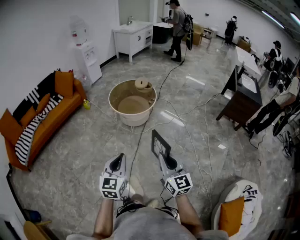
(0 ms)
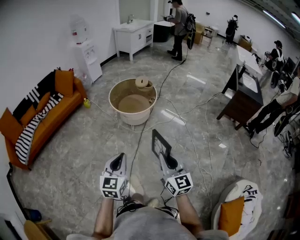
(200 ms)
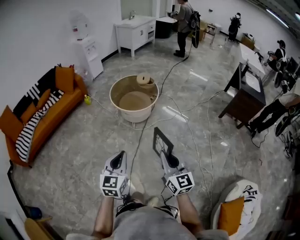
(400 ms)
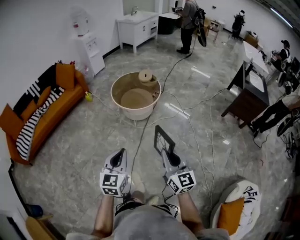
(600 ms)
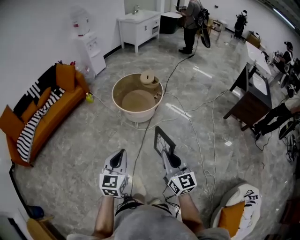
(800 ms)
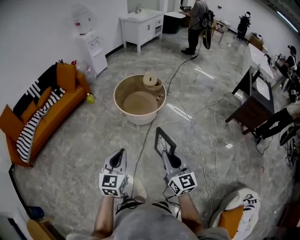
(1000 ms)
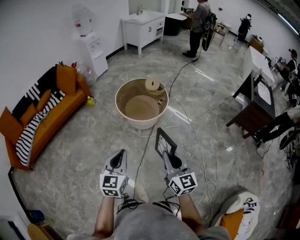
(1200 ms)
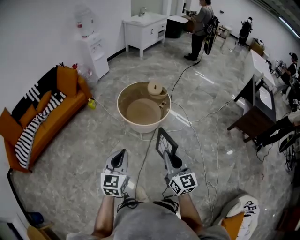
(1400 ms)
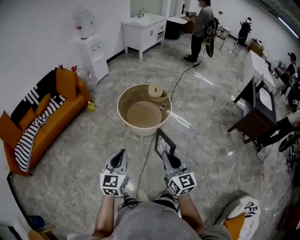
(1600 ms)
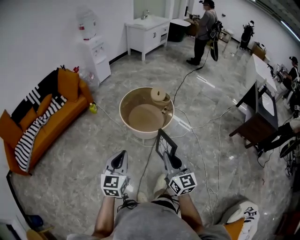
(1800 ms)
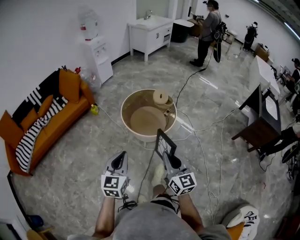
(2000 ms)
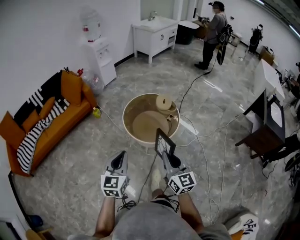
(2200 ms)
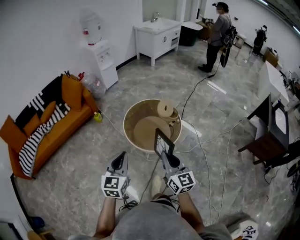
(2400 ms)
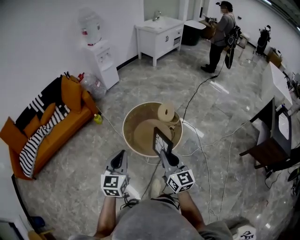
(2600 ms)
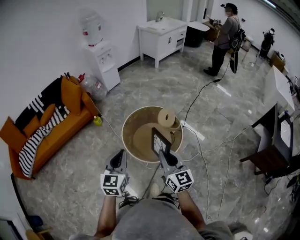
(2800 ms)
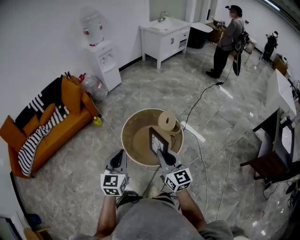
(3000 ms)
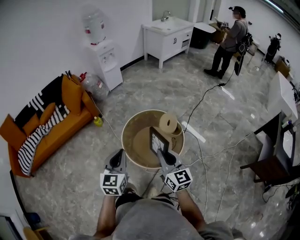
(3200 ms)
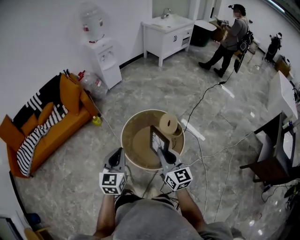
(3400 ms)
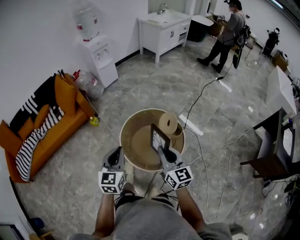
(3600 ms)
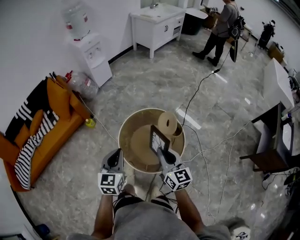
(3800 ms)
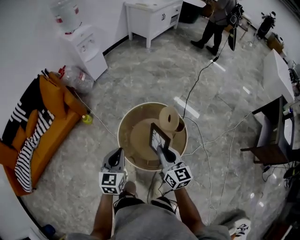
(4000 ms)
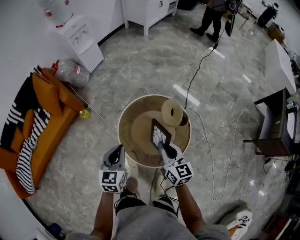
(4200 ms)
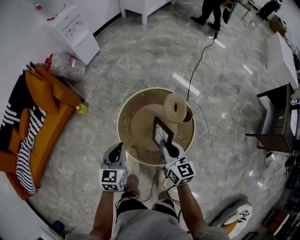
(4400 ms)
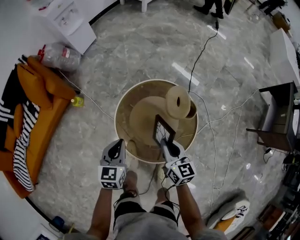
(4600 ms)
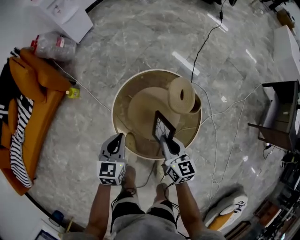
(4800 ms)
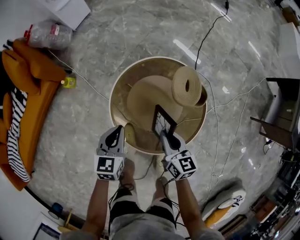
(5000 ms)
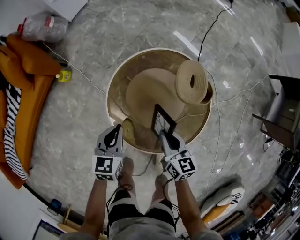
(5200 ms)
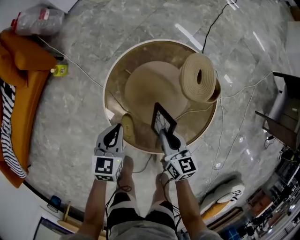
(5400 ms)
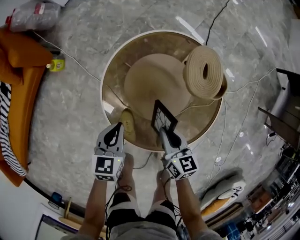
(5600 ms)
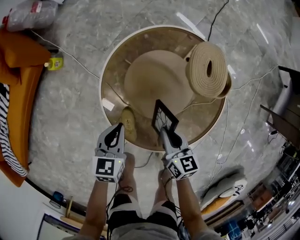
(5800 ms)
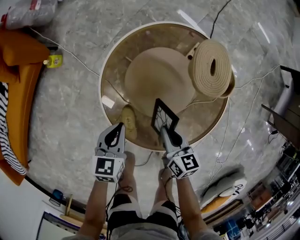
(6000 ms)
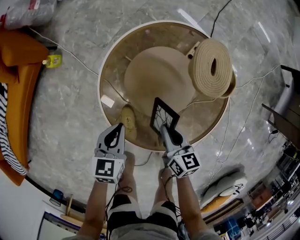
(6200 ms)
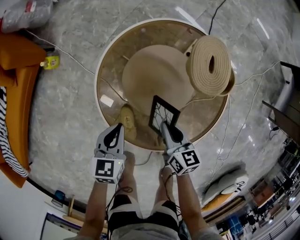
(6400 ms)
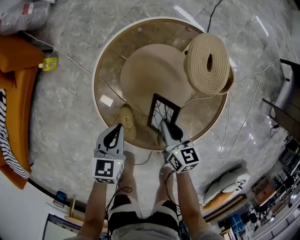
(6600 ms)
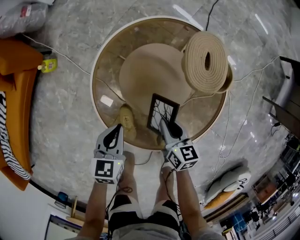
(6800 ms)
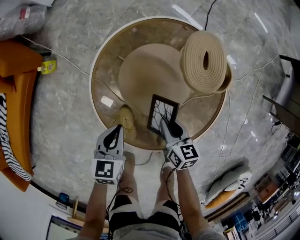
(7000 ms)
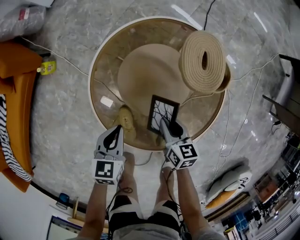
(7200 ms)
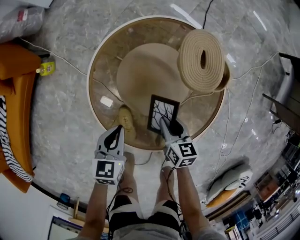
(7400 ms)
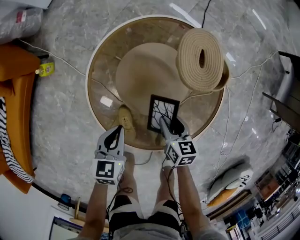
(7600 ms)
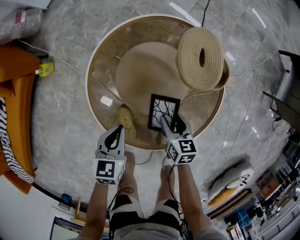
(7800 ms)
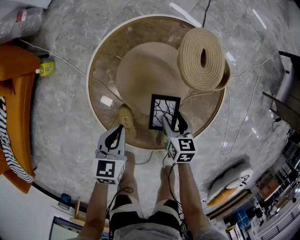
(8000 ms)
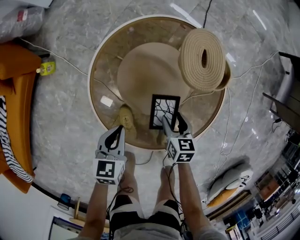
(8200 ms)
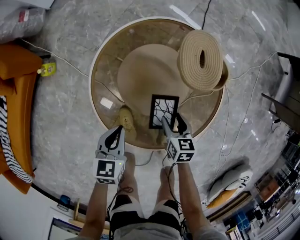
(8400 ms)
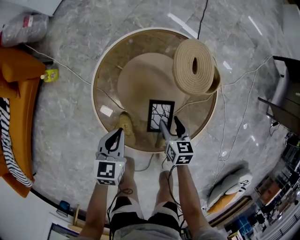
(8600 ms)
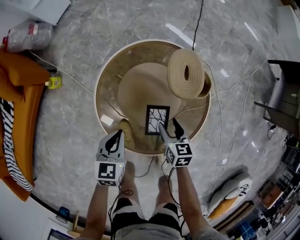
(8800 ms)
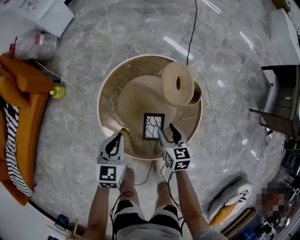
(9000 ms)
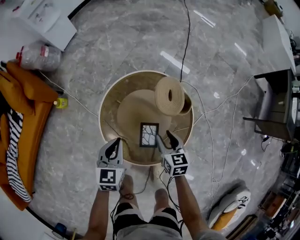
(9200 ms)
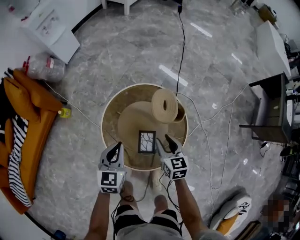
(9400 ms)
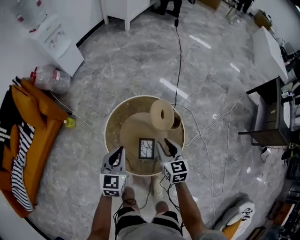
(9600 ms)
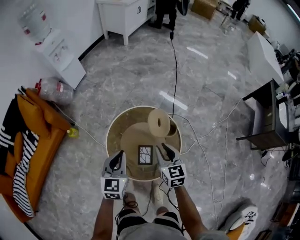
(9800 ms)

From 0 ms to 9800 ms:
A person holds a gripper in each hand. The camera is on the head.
From 0 ms to 1400 ms: Both grippers move forward, roughly 30 cm.
From 1400 ms to 2800 ms: The two grippers go approximately 40 cm forward.
From 2800 ms to 4200 ms: The two grippers go about 35 cm forward and downward.
From 4200 ms to 5600 ms: The grippers both shift downward by roughly 40 cm. The right gripper rotates some 20 degrees. The left gripper rotates roughly 20 degrees.
From 5600 ms to 7000 ms: The right gripper heads downward, covering some 10 cm. The left gripper ends up some 5 cm from where it was.
From 7000 ms to 8400 ms: The right gripper ends up approximately 5 cm from where it was, and opens up.
From 8400 ms to 9800 ms: Both grippers travel together upward, approximately 40 cm. The right gripper turns by approximately 30 degrees, and closes its fingers; the left gripper rotates about 30 degrees.

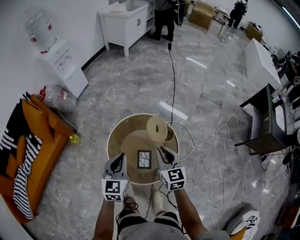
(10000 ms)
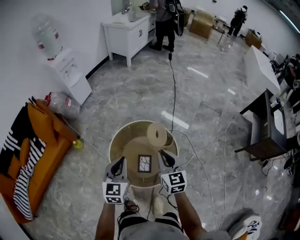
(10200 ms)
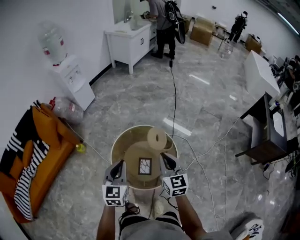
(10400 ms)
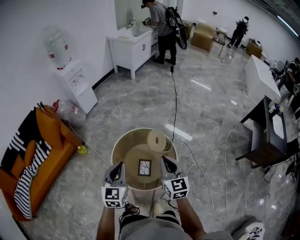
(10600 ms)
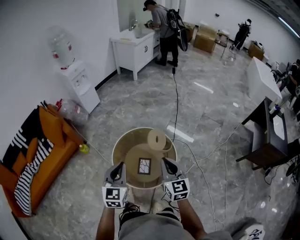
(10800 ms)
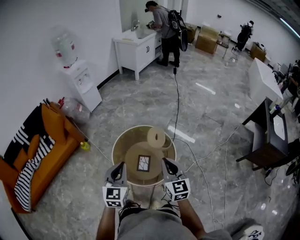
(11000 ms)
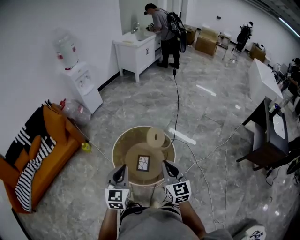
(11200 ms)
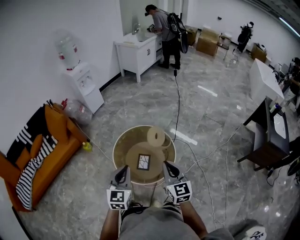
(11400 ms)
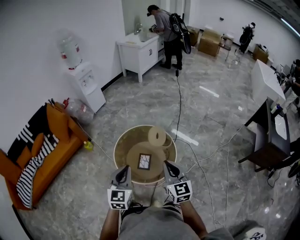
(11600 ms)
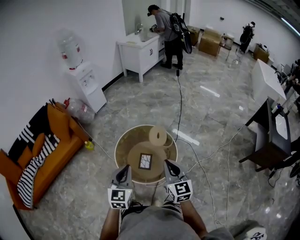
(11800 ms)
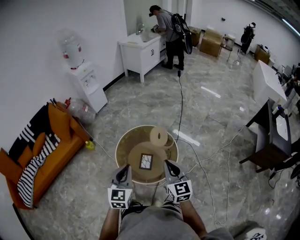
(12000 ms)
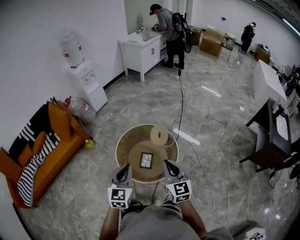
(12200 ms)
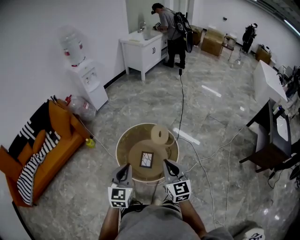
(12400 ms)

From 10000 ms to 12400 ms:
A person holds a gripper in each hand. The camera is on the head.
From 10000 ms to 11200 ms: The two grippers go roughly 25 cm backward and upward.
From 11200 ms to 12400 ms: The grippers stay close to where they were, moving slightly.

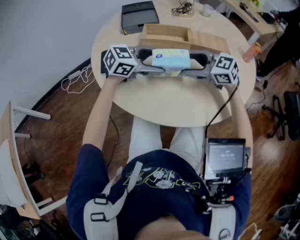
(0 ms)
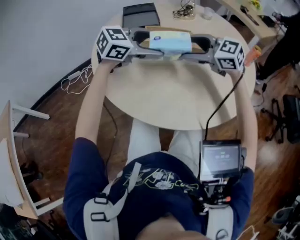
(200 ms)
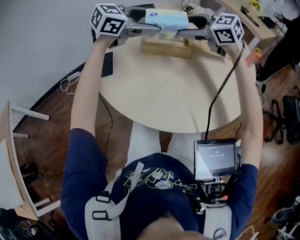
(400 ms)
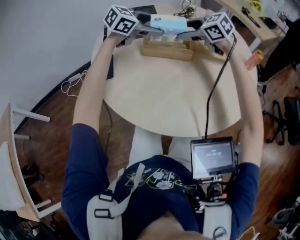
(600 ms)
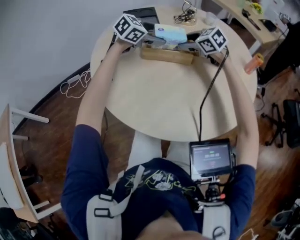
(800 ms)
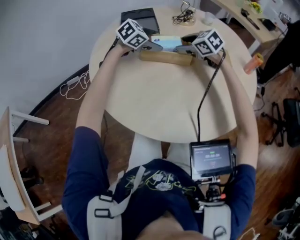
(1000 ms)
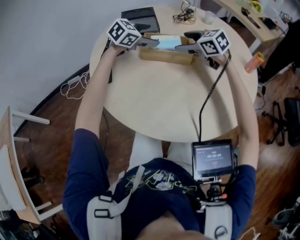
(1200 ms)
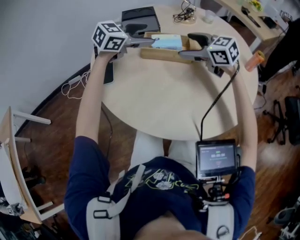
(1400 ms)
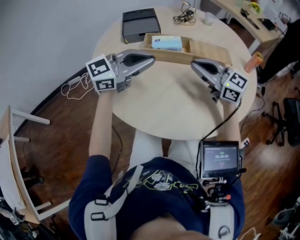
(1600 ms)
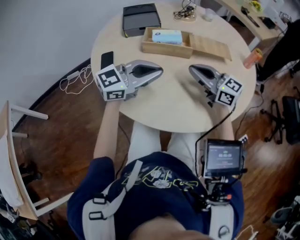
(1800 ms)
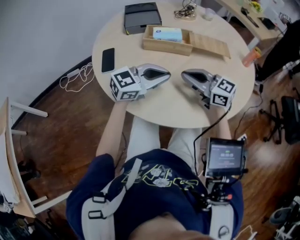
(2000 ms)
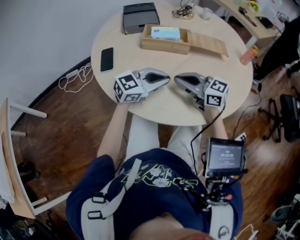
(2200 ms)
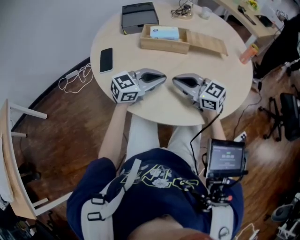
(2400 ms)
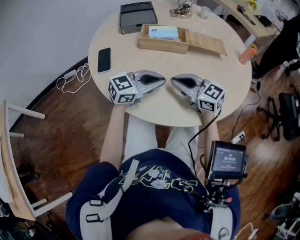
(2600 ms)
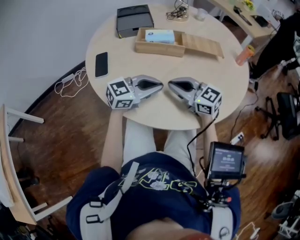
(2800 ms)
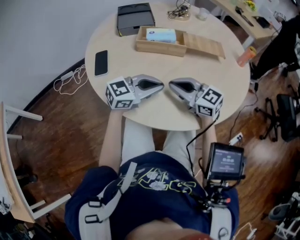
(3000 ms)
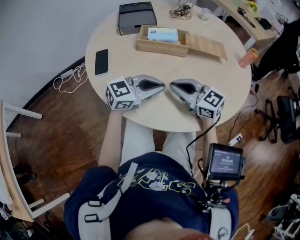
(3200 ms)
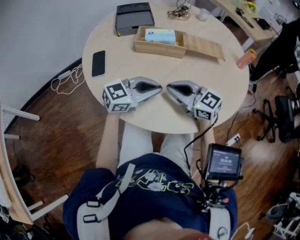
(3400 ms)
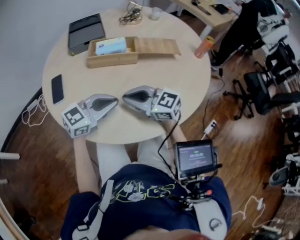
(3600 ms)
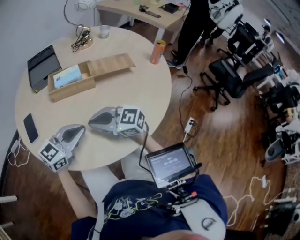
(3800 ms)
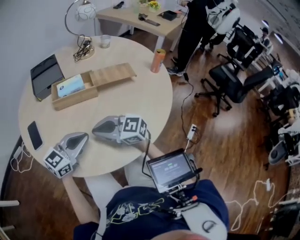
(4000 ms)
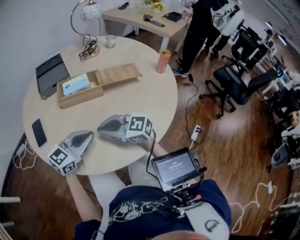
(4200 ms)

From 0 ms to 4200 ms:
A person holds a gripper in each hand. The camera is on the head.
From 0 ms to 1400 ms: The left gripper goes up and down, about 15 cm each way, reversing 2 times, while the right gripper moves up and down over roughly 15 cm, changing direction 2 times.
From 1400 ms to 2800 ms: The right gripper shifts by approximately 20 cm, and closes. The left gripper changes place by roughly 25 cm, swivels about 20 degrees, and closes up.
From 2800 ms to 4200 ms: The grippers stay close to where they were, moving slightly.

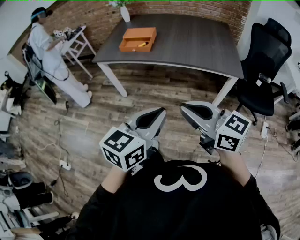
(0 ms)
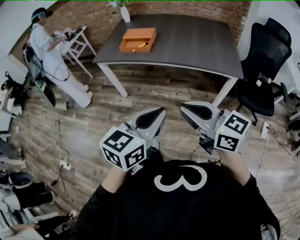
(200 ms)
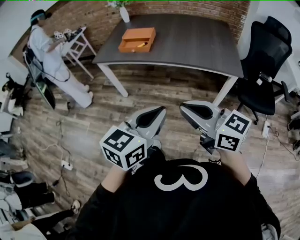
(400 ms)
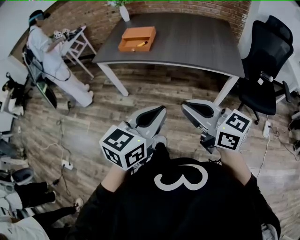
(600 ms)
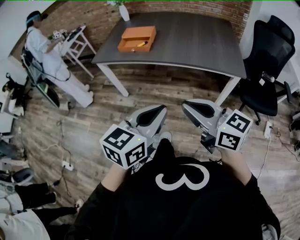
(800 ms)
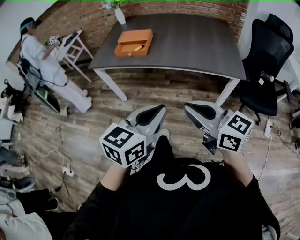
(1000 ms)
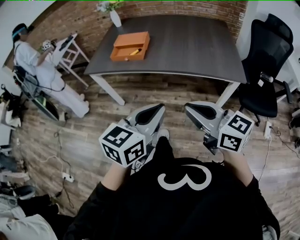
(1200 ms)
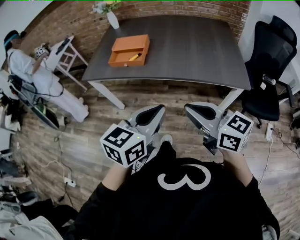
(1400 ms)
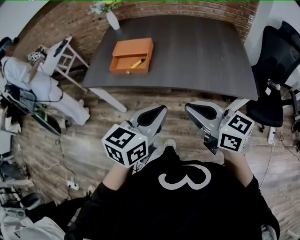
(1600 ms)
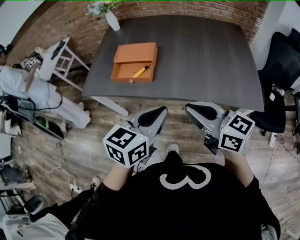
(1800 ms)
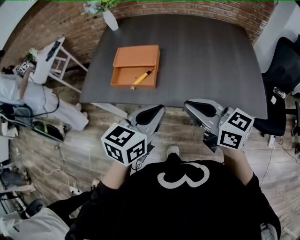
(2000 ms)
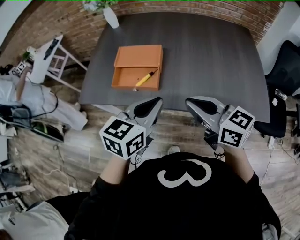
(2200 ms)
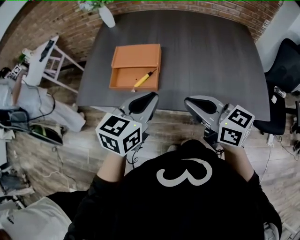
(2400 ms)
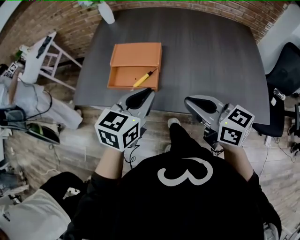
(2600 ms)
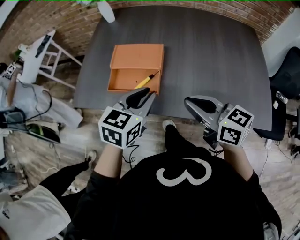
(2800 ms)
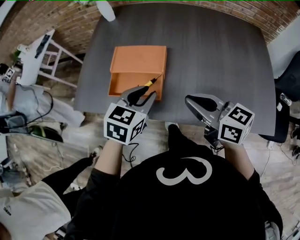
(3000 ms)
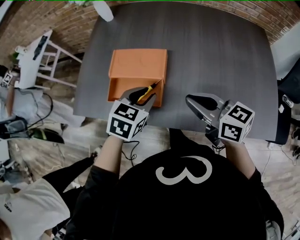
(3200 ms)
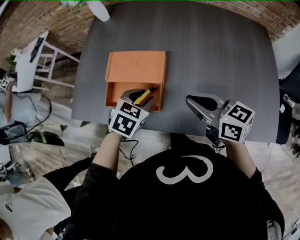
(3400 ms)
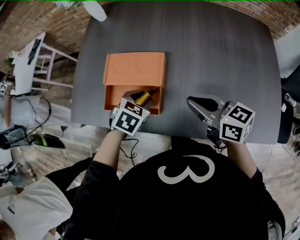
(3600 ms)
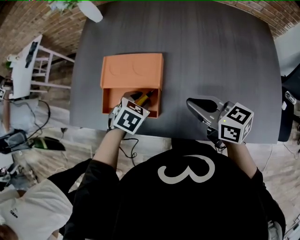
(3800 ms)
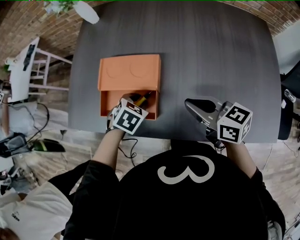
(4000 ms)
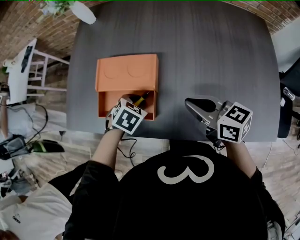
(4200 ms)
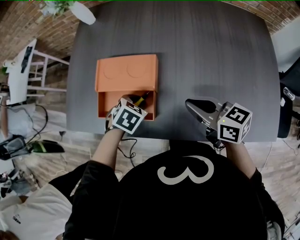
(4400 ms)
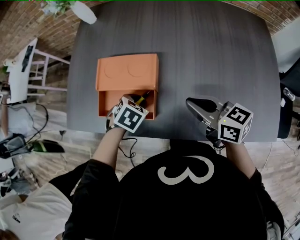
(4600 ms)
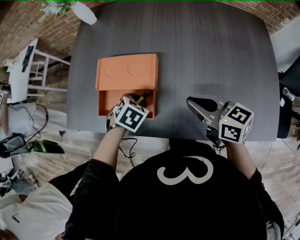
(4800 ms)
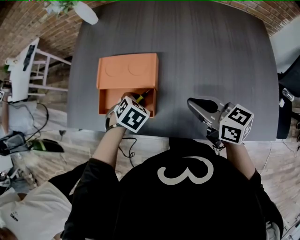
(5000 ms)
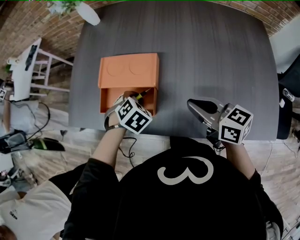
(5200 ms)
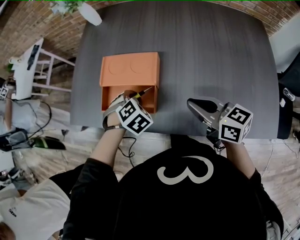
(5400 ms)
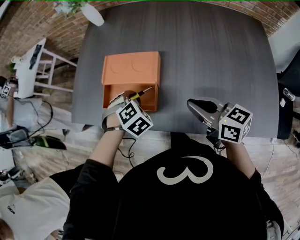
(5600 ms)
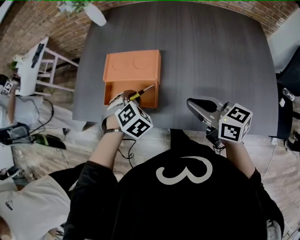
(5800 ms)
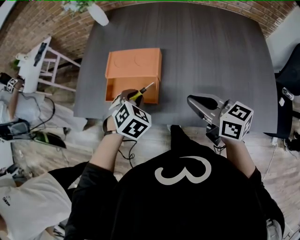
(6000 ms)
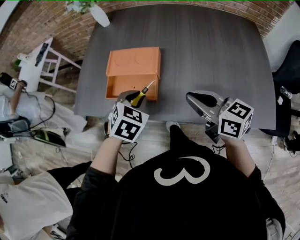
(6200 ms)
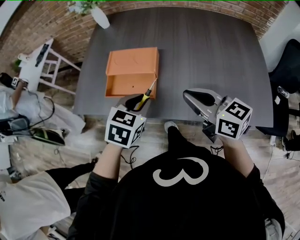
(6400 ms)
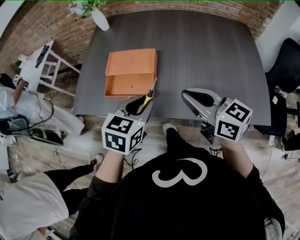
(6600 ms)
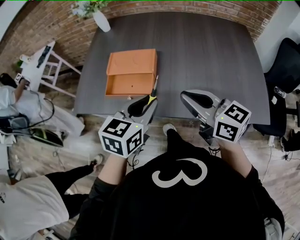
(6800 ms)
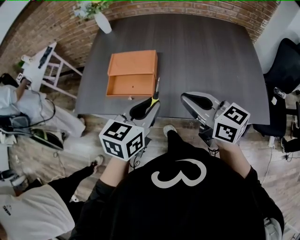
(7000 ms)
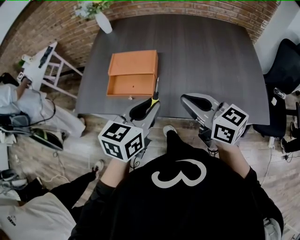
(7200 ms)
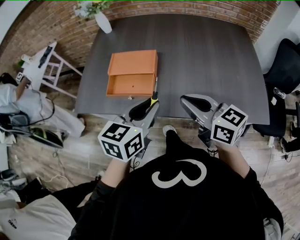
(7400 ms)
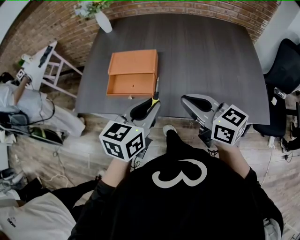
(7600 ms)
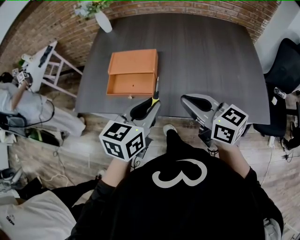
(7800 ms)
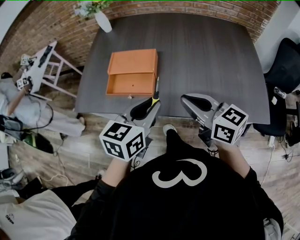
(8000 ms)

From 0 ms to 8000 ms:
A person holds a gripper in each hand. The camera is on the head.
From 0 ms to 1600 ms: Both grippers travel together forward, some 25 cm.
From 1600 ms to 3200 ms: Both grippers move forward, roughly 35 cm. The left gripper rotates some 30 degrees, and opens its fingers.
From 3200 ms to 4800 ms: The left gripper goes approximately 10 cm downward, and rotates about 30 degrees; the right gripper changes place by approximately 5 cm.
From 4800 ms to 6400 ms: The left gripper heads upward and backward, covering about 20 cm, and swivels some 30 degrees; the right gripper moves backward and upward, some 10 cm.
From 6400 ms to 8000 ms: The left gripper travels upward and backward by some 10 cm, and swivels some 30 degrees.
